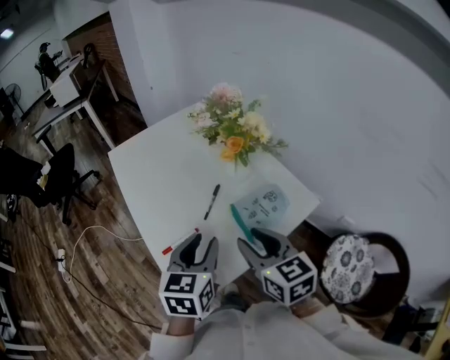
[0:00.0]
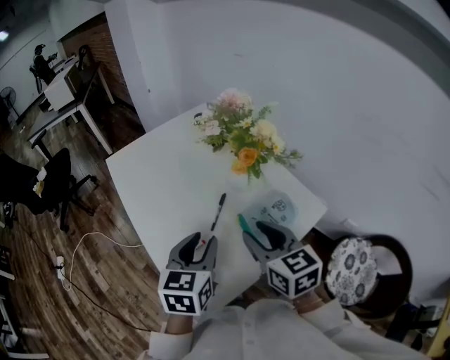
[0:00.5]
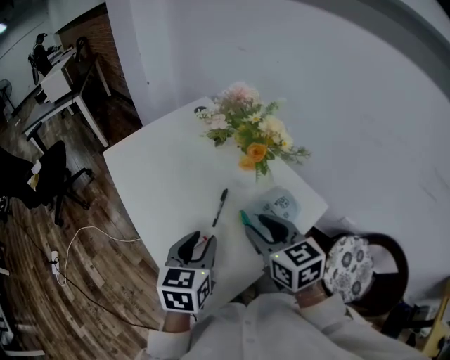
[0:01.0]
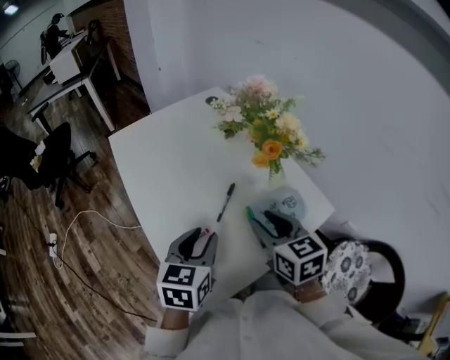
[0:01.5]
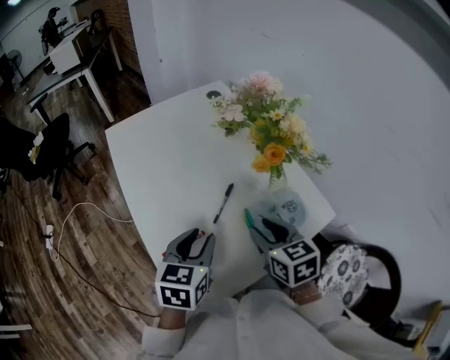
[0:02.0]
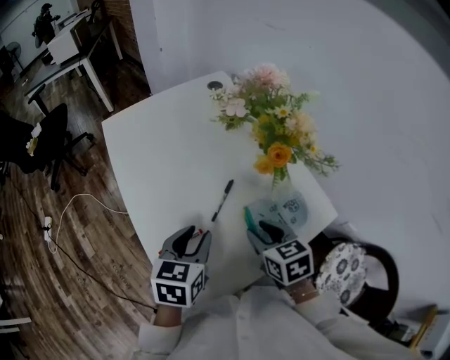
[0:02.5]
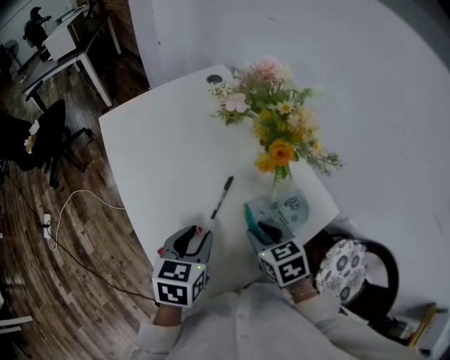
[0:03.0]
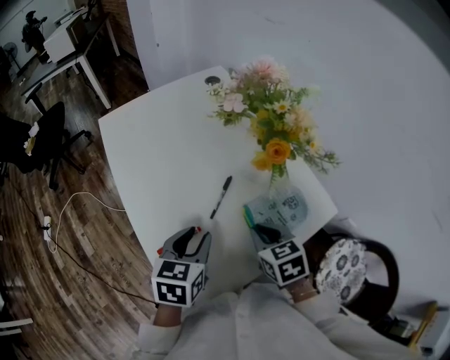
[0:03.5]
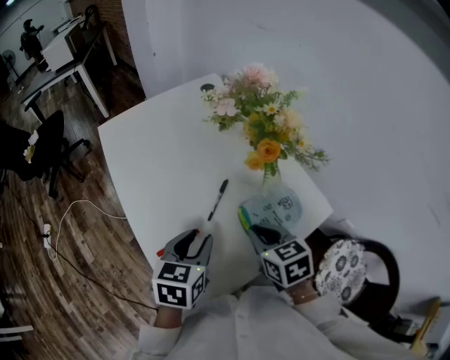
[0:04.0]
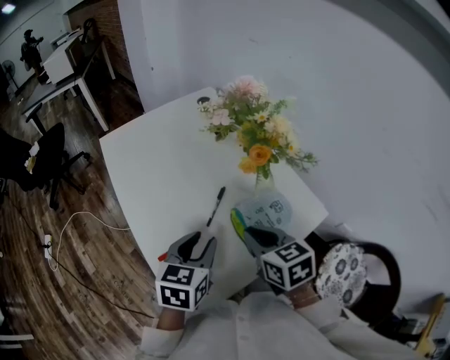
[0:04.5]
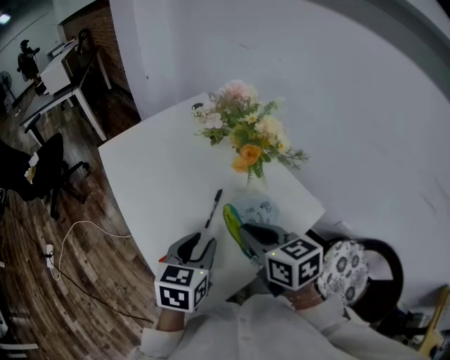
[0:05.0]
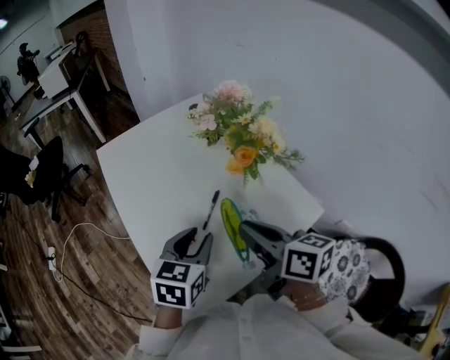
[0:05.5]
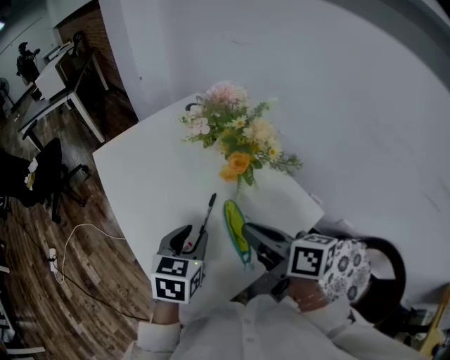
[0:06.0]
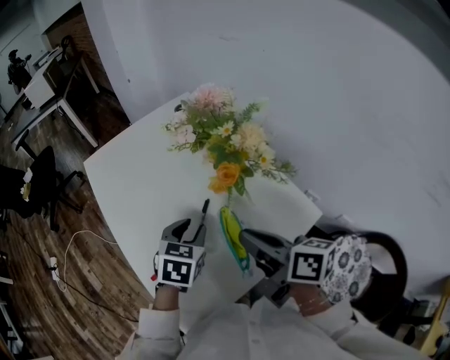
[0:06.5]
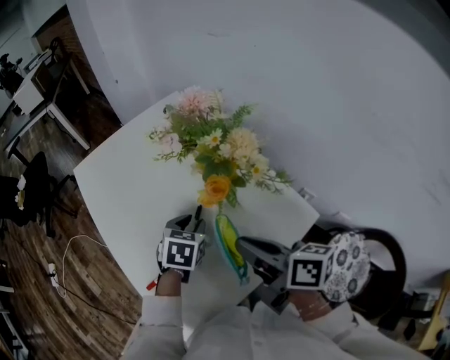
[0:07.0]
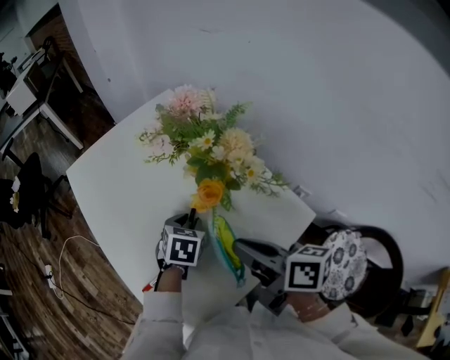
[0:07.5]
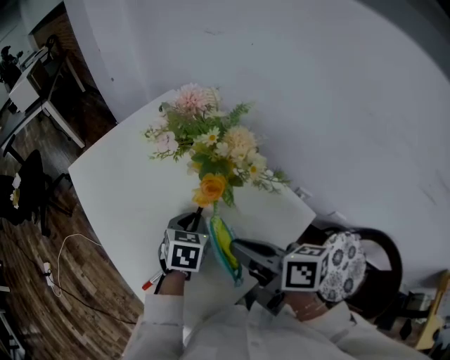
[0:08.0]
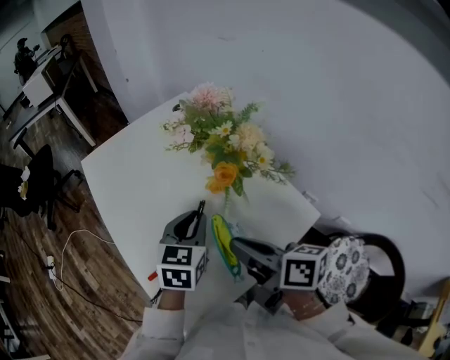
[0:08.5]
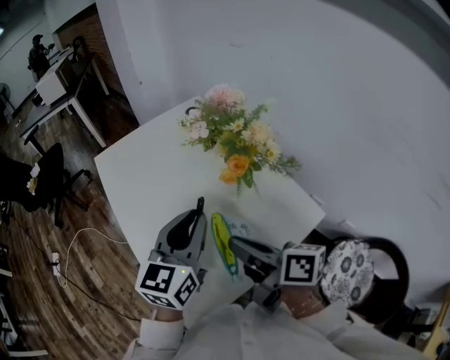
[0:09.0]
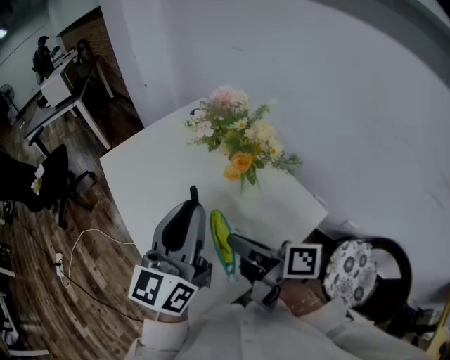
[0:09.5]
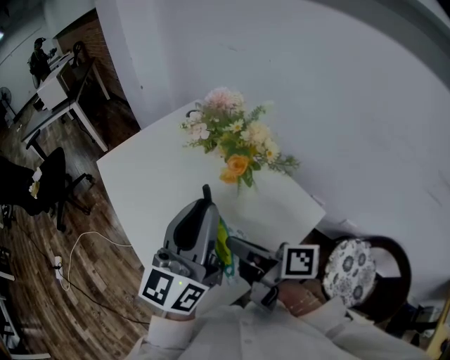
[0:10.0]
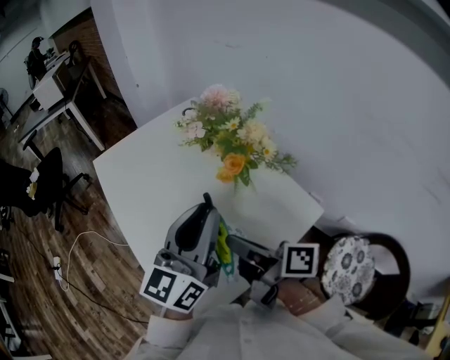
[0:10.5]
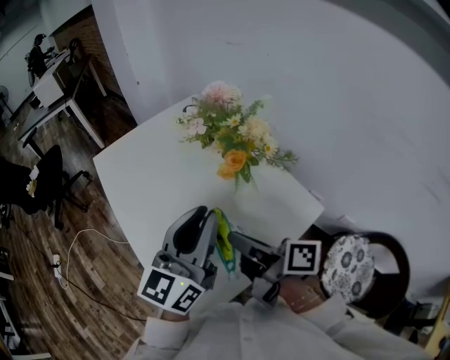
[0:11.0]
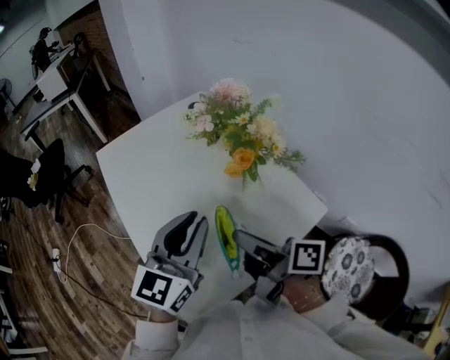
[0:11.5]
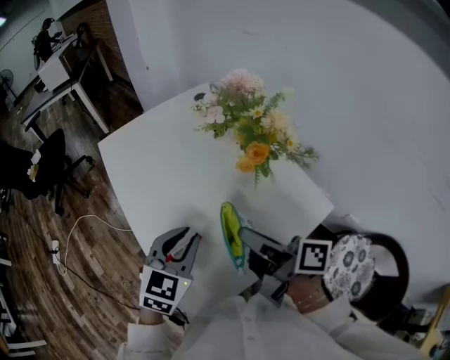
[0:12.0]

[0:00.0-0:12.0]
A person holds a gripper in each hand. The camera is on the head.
0:00.0 to 0:02.0: Both grippers travel together forward and downward, about 10 cm.
0:02.0 to 0:04.0: The right gripper closes.
0:04.0 to 0:06.0: The right gripper moves upward, some 10 cm, and turns by approximately 40 degrees, while the left gripper ends up about 5 cm from where it was.
0:06.0 to 0:08.0: The left gripper shifts some 15 cm downward, forward and to the right.
0:08.0 to 0:10.0: The left gripper goes some 25 cm upward, and angles its fingers upward, by some 60 degrees. The right gripper moves to the left, approximately 5 cm, and changes its angle by approximately 20 degrees.
0:10.0 to 0:12.0: The left gripper moves downward and to the left, approximately 20 cm, and tips its fingers downward by approximately 40 degrees.

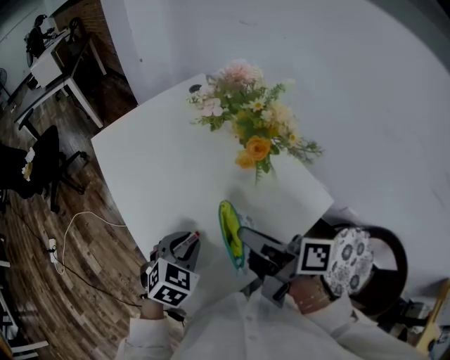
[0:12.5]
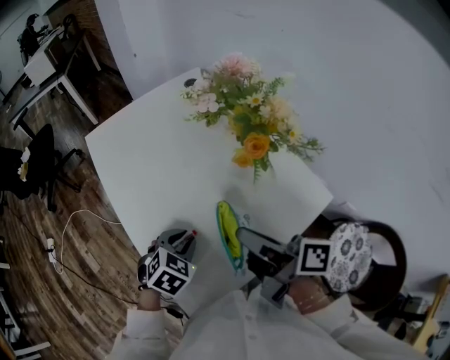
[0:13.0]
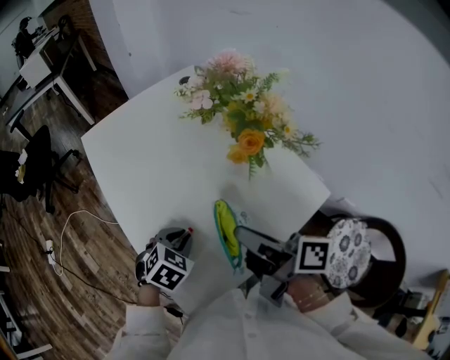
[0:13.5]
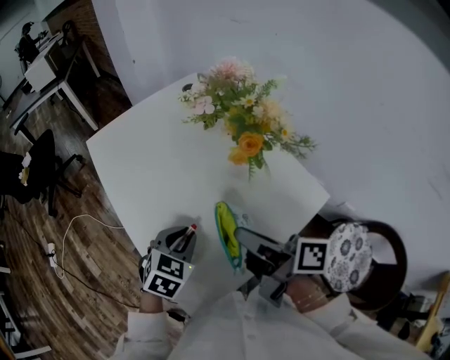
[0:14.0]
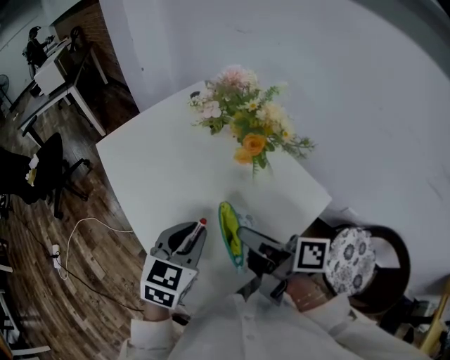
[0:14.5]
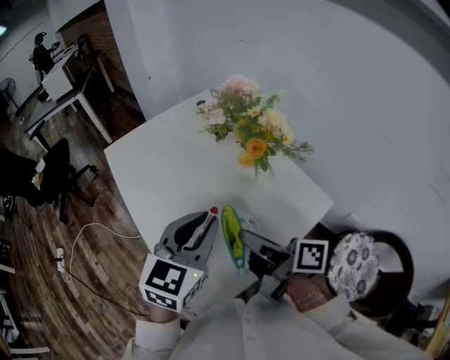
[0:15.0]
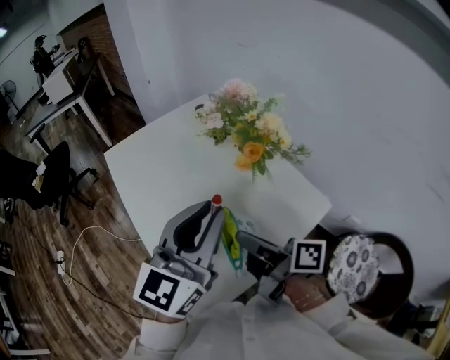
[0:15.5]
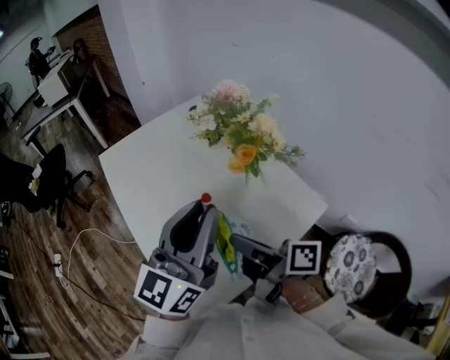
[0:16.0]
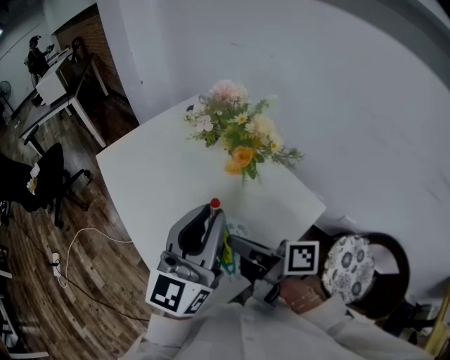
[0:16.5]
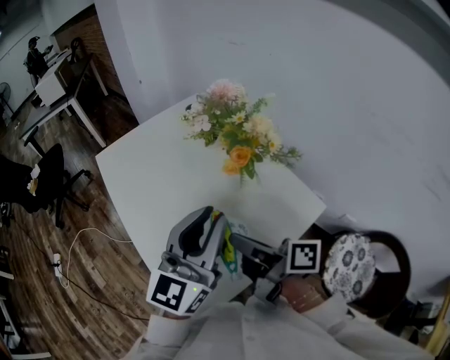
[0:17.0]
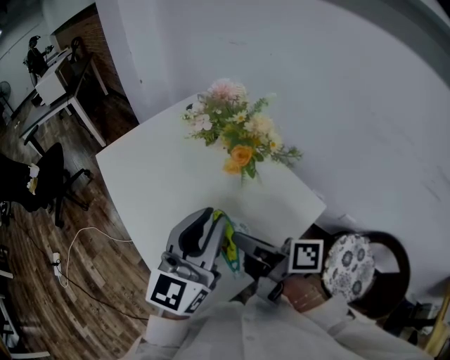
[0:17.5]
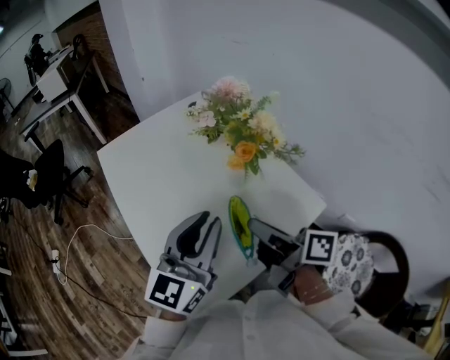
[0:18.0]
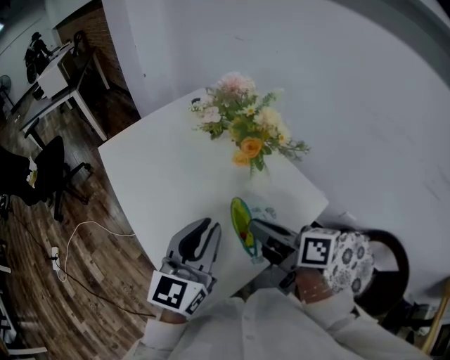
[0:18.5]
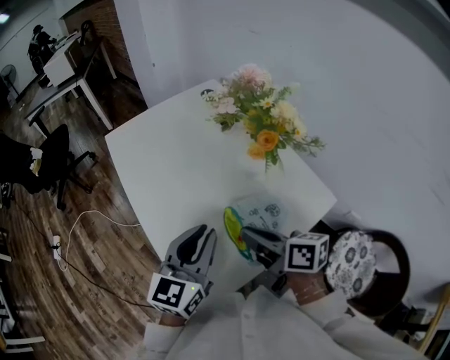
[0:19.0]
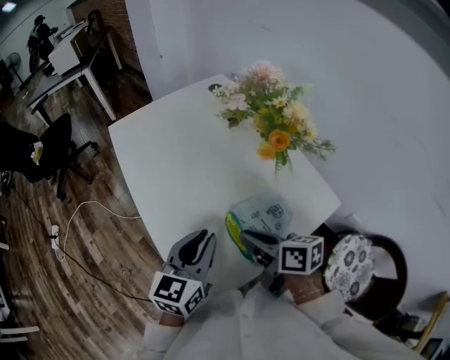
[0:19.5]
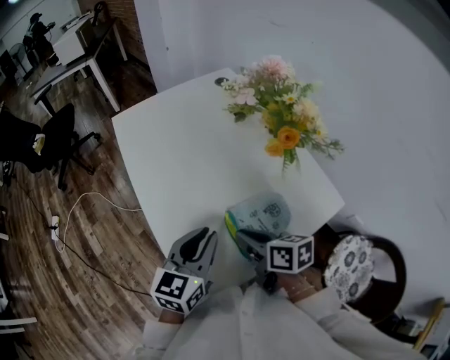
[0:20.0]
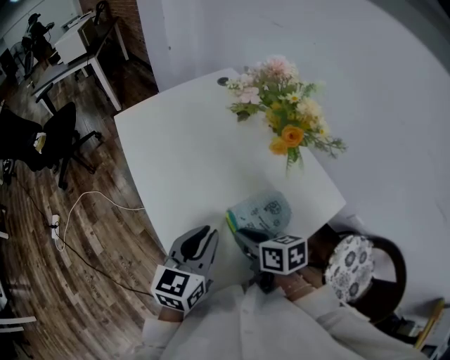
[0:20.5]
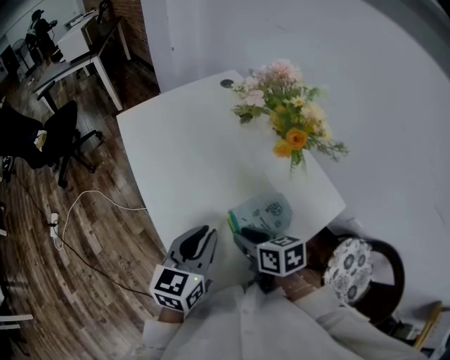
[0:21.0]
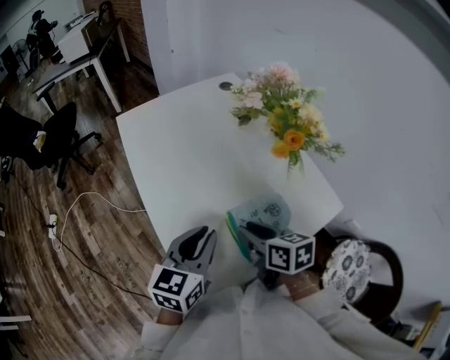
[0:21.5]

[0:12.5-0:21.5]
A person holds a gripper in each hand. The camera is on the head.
0:12.5 to 0:14.5: The left gripper goes approximately 10 cm upward.
0:14.5 to 0:17.0: The left gripper shifts about 15 cm upward and to the right, and tilts its fingers some 40 degrees upward.
0:17.0 to 0:19.5: The right gripper moves downward, roughly 10 cm, and rotates approximately 30 degrees. The left gripper moves downward and to the left, roughly 15 cm, and swivels approximately 30 degrees.

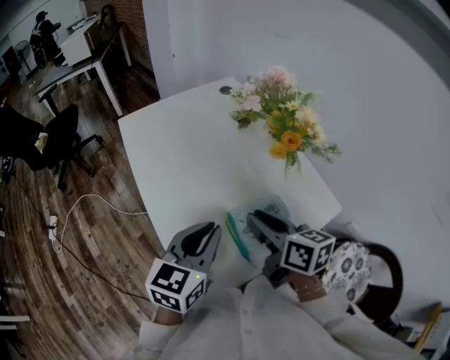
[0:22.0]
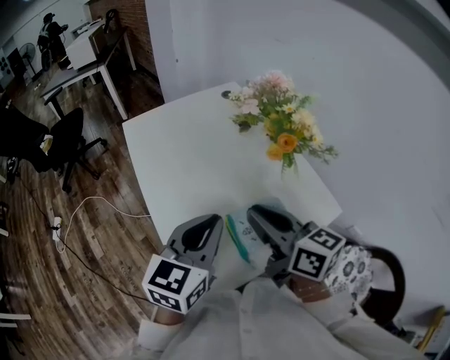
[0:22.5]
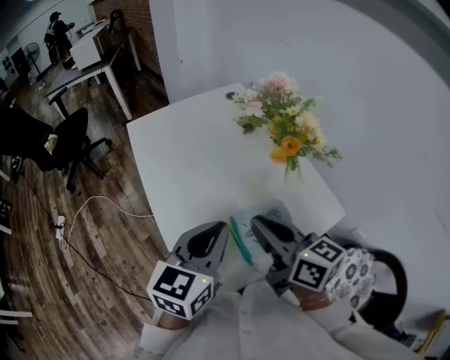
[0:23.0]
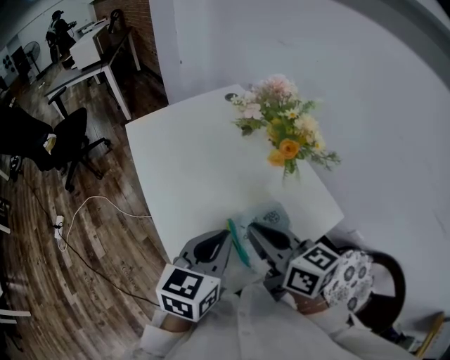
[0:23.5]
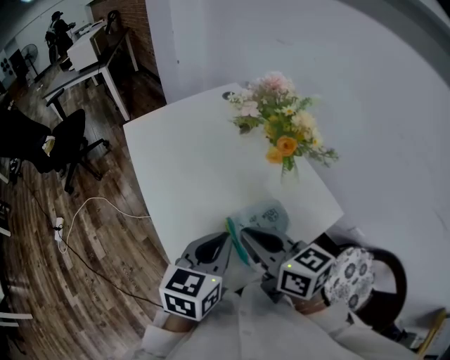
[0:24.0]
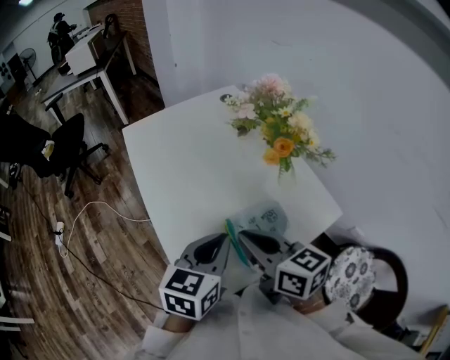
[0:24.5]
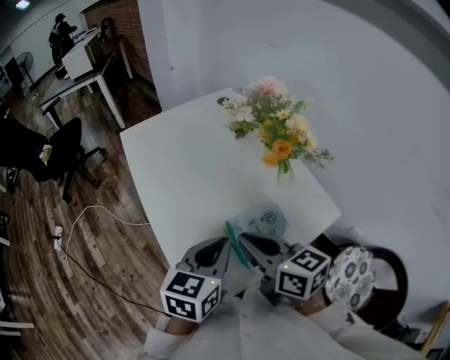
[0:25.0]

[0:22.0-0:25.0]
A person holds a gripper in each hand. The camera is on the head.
0:22.0 to 0:23.5: The right gripper shifts some 5 cm upward.
0:23.5 to 0:25.0: There are only small adjustments of the grippers.

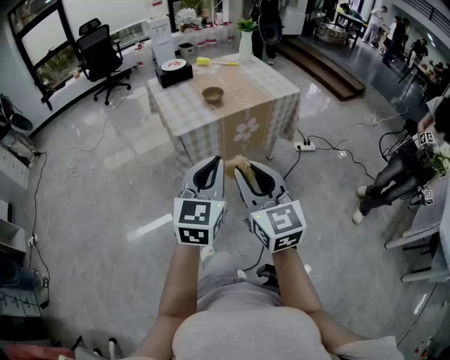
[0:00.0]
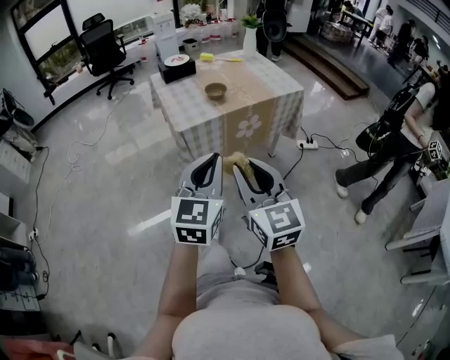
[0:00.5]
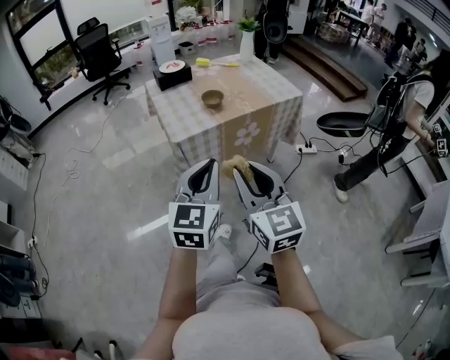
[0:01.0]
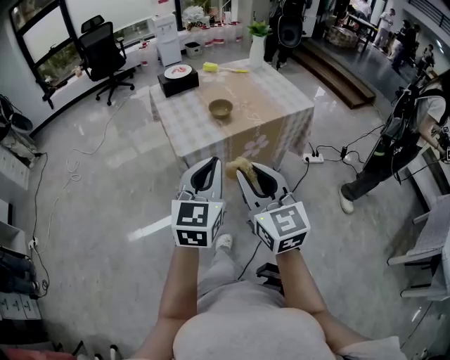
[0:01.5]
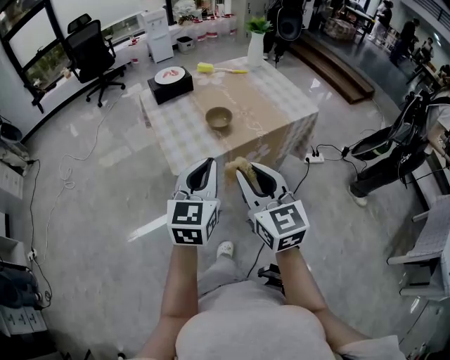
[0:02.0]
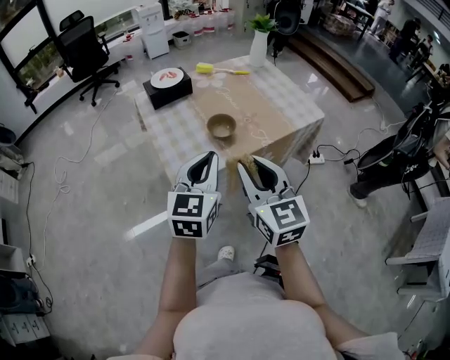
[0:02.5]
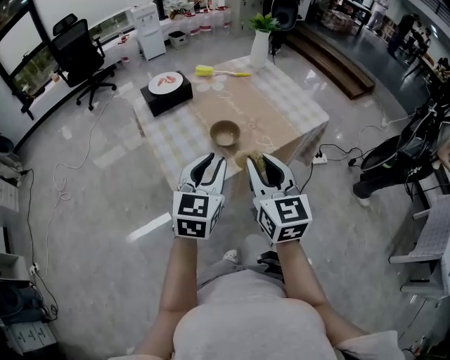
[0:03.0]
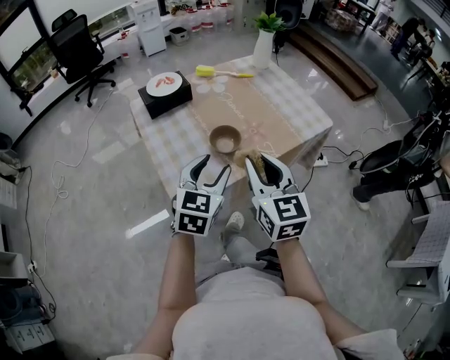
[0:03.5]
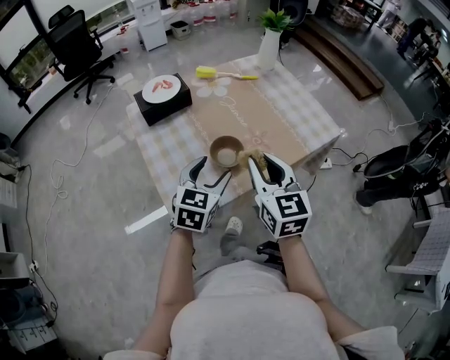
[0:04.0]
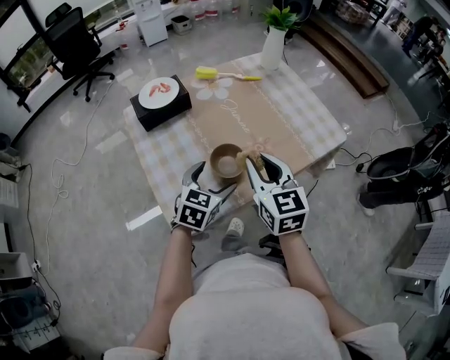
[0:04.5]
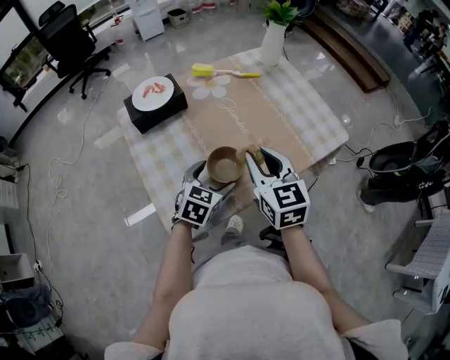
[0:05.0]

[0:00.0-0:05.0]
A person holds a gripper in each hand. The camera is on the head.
0:00.0 to 0:02.5: The grippers both shift forward by roughly 30 cm.
0:02.5 to 0:05.0: The left gripper moves forward and downward, roughly 30 cm, turns by roughly 30 degrees, and opens; the right gripper travels forward by roughly 25 cm.
